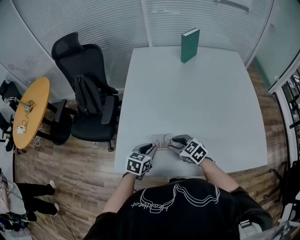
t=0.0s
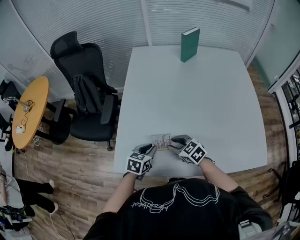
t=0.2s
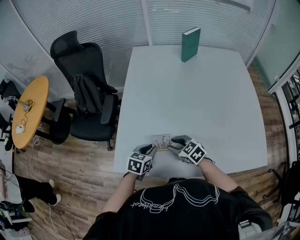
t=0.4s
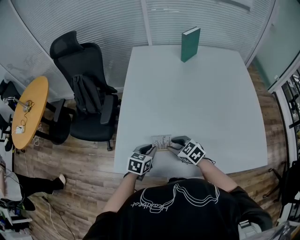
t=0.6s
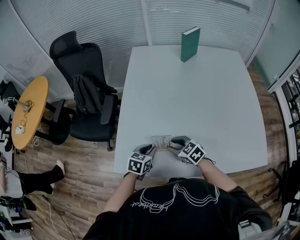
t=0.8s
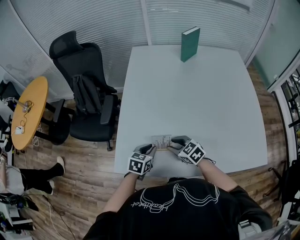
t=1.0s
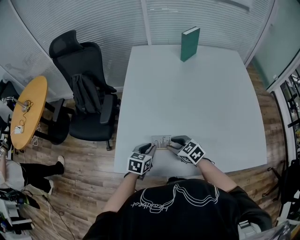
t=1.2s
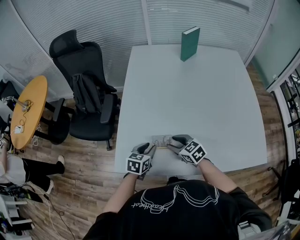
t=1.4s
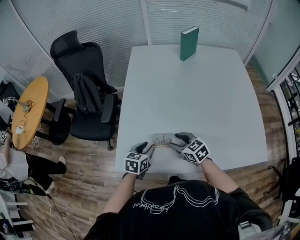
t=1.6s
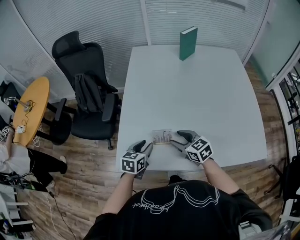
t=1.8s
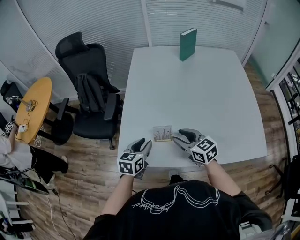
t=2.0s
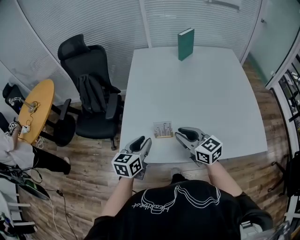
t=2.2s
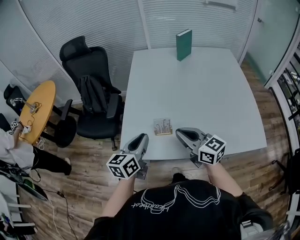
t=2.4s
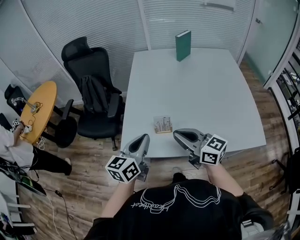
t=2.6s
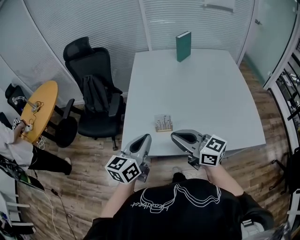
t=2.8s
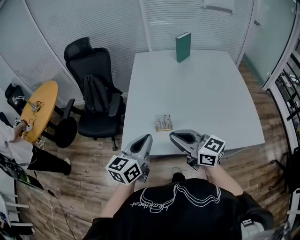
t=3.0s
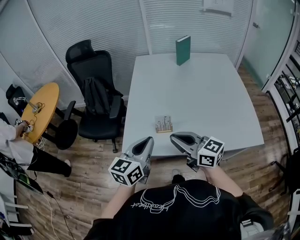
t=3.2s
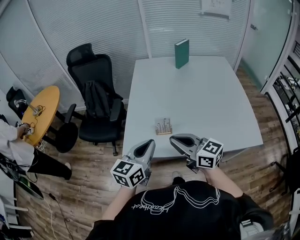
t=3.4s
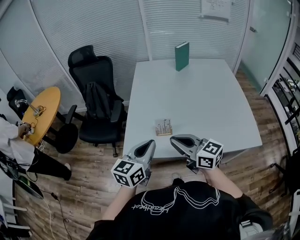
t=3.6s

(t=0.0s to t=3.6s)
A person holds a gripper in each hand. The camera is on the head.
t=0.0s - t=1.8s: The right gripper opens its fingers.
t=1.8s - t=3.6s: The two grippers go some 25 cm upward and backward. The left gripper turns by some 30 degrees, and closes its fingers. Meanwhile the right gripper swivels roughly 30 degrees, and closes its fingers.

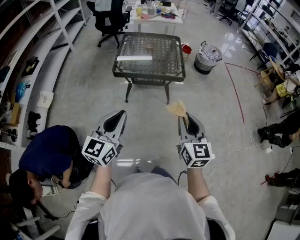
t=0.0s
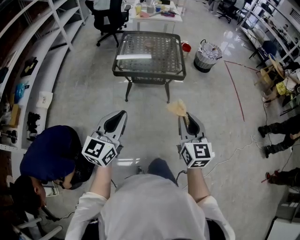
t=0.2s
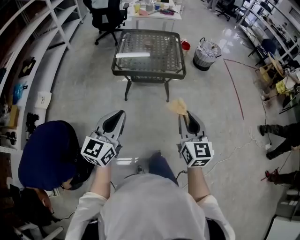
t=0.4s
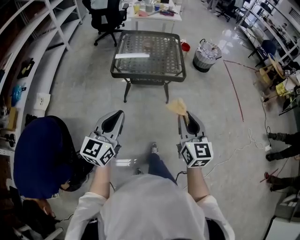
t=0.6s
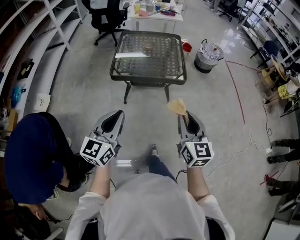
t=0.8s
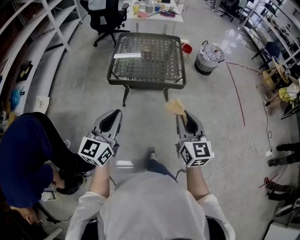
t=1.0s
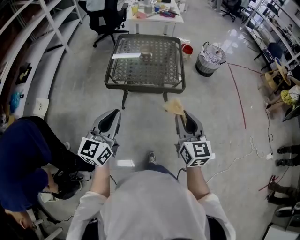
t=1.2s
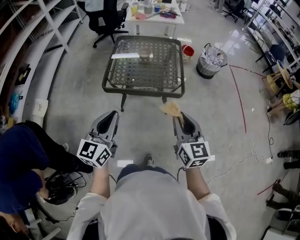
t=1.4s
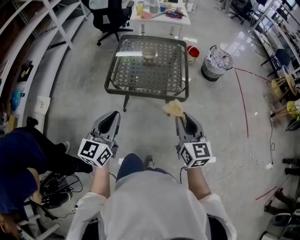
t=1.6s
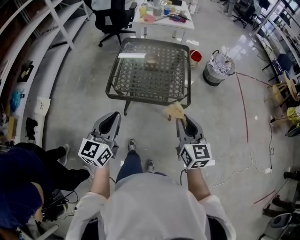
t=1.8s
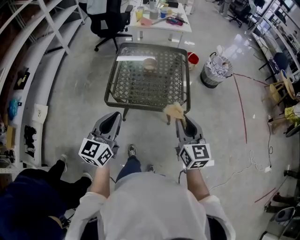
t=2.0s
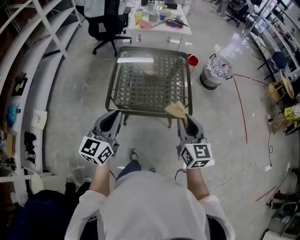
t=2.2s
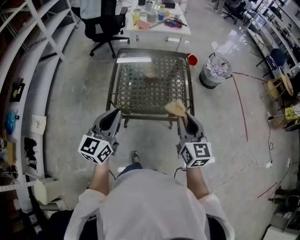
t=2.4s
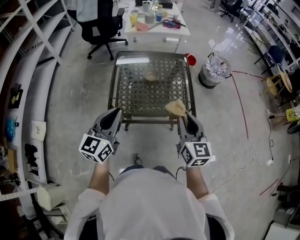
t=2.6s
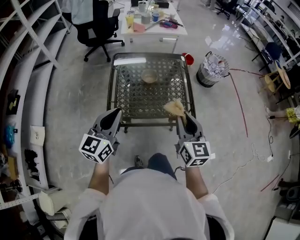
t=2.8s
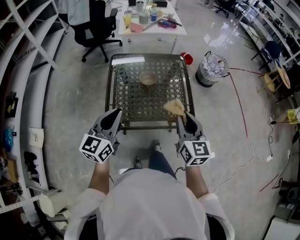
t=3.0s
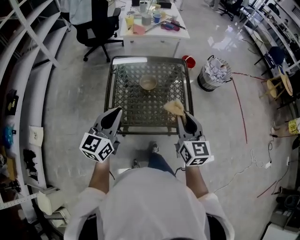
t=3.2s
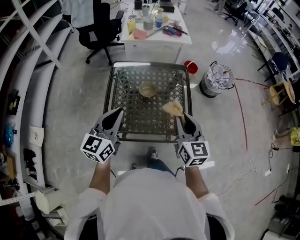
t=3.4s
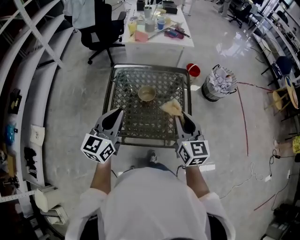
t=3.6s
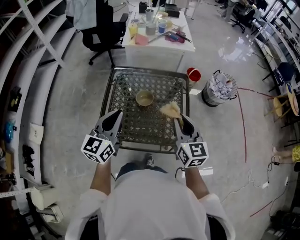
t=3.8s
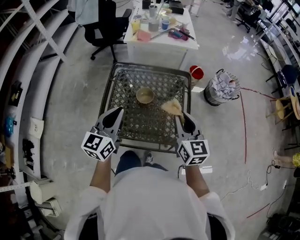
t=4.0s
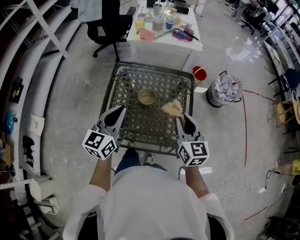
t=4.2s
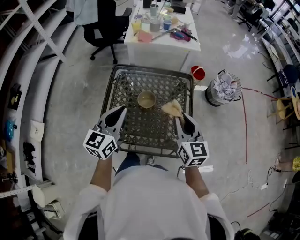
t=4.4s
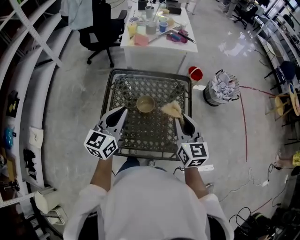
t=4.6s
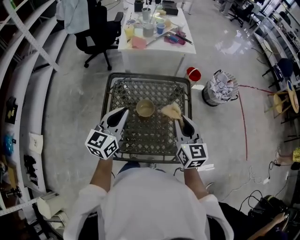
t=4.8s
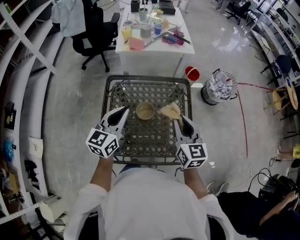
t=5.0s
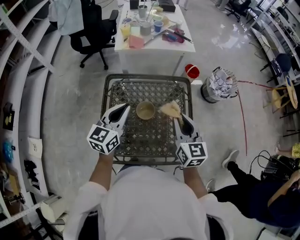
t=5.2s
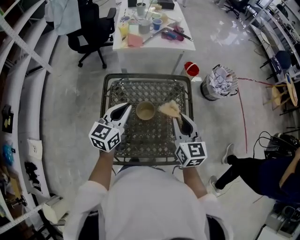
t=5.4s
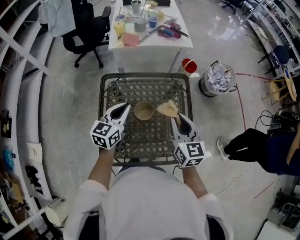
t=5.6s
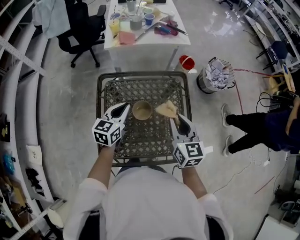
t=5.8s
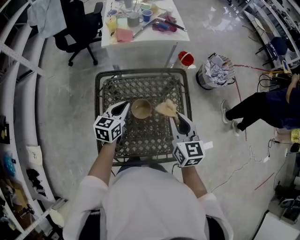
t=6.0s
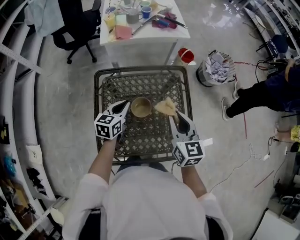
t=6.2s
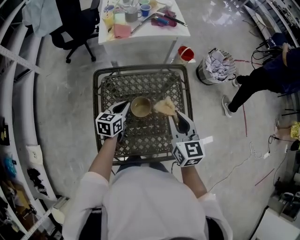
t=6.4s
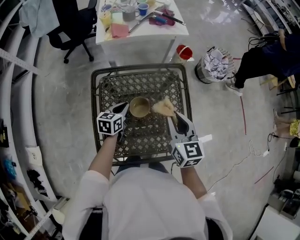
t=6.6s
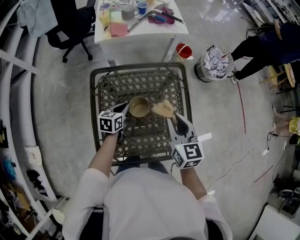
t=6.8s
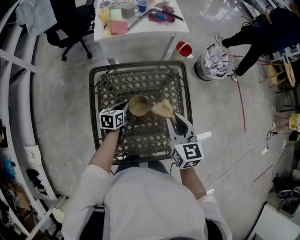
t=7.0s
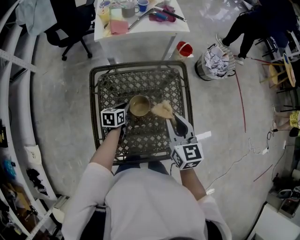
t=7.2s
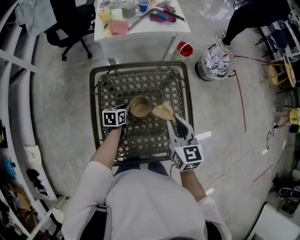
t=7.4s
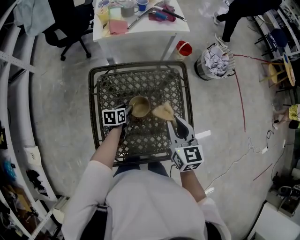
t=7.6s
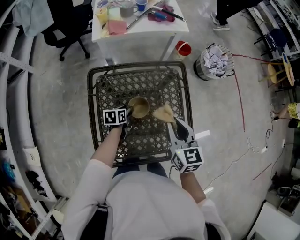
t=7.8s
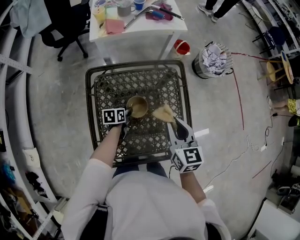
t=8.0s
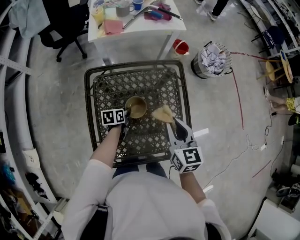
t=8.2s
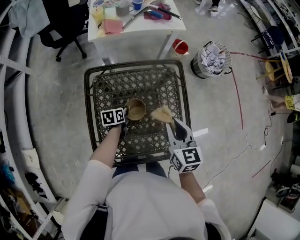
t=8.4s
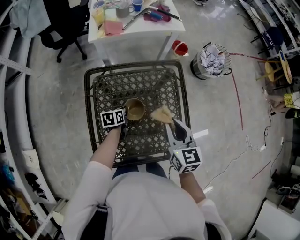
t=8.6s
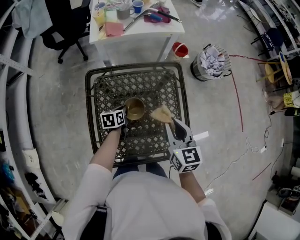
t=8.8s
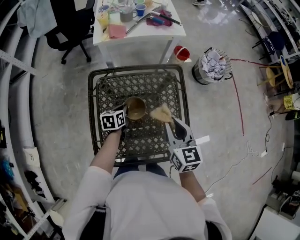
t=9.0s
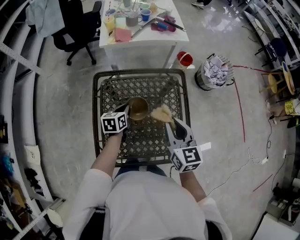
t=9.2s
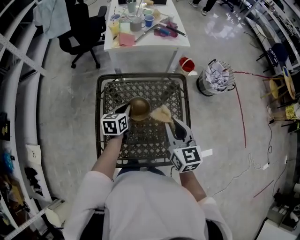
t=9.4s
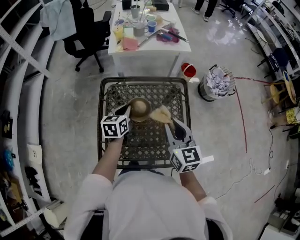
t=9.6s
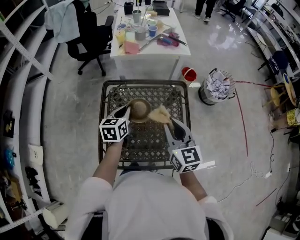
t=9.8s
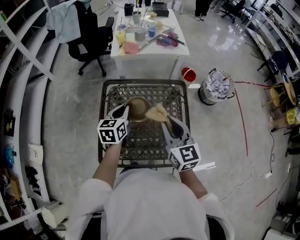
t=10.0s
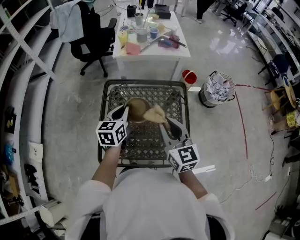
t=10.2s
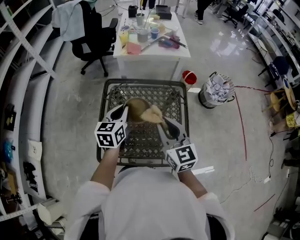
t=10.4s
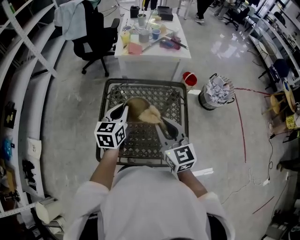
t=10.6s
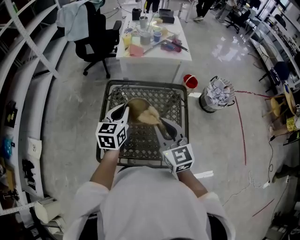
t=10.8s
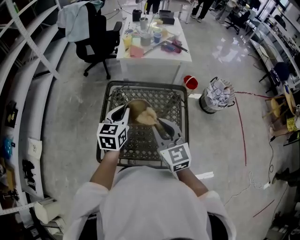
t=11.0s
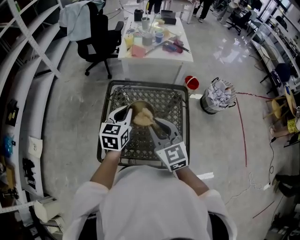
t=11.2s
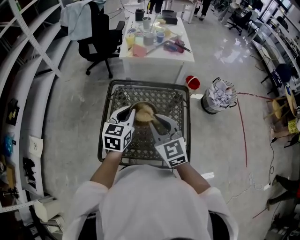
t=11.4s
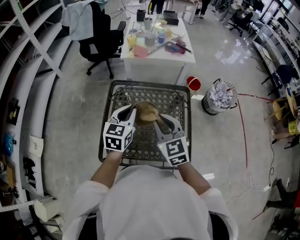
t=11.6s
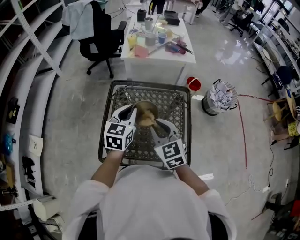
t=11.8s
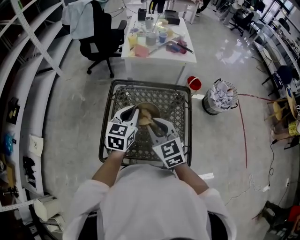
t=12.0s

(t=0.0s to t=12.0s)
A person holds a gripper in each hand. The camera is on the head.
t=0.0s - t=1.6s: Both grippers travel together forward, roughly 25 cm.
t=1.6s - t=3.0s: The left gripper moves forward, roughly 25 cm. The right gripper moves forward and to the left, about 25 cm.
t=3.0s - t=4.4s: The grippers both shift forward by approximately 20 cm.
t=4.4s - t=6.0s: The right gripper moves forward, about 10 cm; the left gripper heads forward and downward, covering roughly 20 cm, and swivels roughly 20 degrees.
t=6.0s - t=7.6s: The left gripper goes some 20 cm downward, rotates roughly 30 degrees, and opens up.
t=7.6s - t=9.0s: The left gripper closes its fingers.
t=9.0s - t=10.4s: The left gripper travels upward by roughly 25 cm, and turns by approximately 30 degrees. The right gripper heads upward and backward, covering roughly 10 cm, and changes its angle by about 20 degrees.
t=10.4s - t=12.0s: The right gripper is displaced to the left by roughly 5 cm, and turns by about 20 degrees.

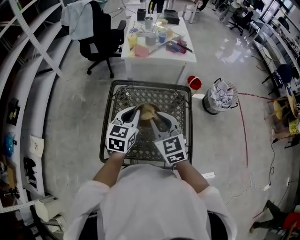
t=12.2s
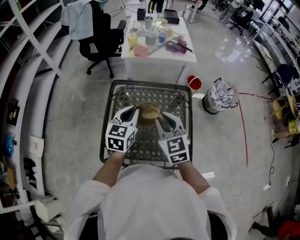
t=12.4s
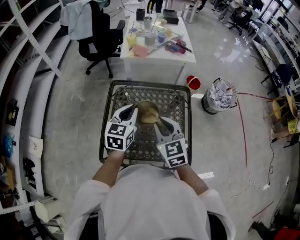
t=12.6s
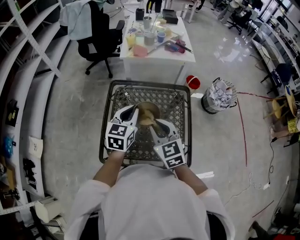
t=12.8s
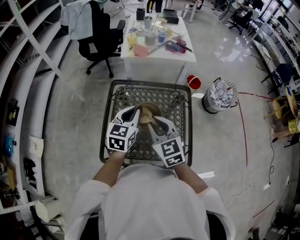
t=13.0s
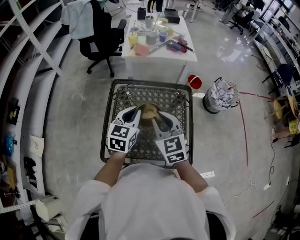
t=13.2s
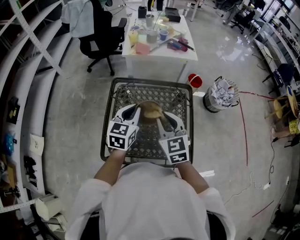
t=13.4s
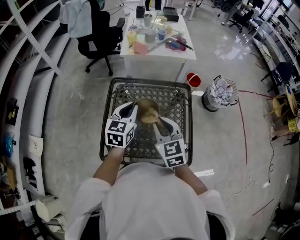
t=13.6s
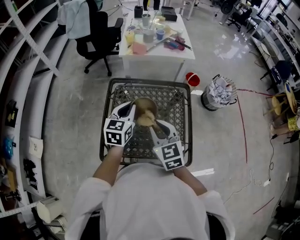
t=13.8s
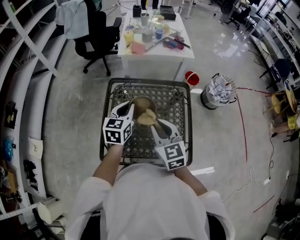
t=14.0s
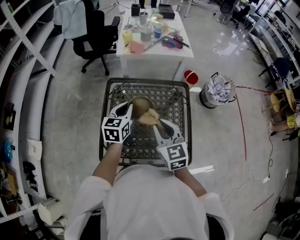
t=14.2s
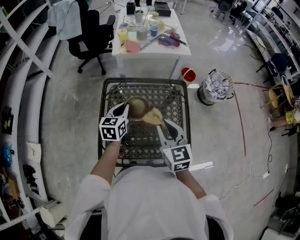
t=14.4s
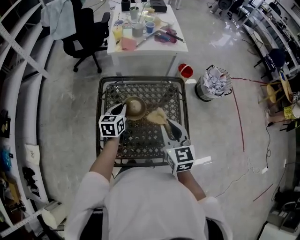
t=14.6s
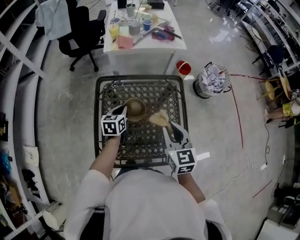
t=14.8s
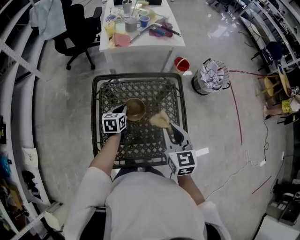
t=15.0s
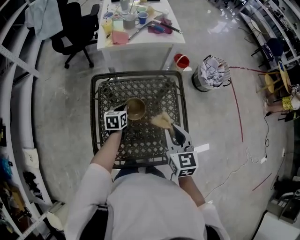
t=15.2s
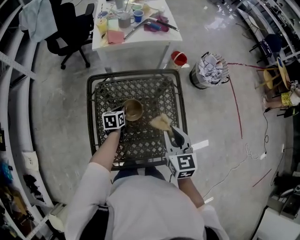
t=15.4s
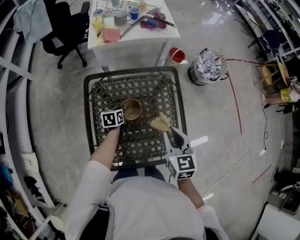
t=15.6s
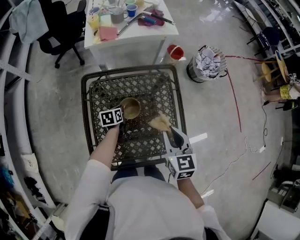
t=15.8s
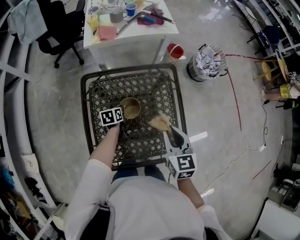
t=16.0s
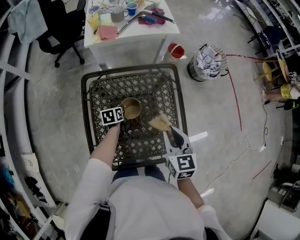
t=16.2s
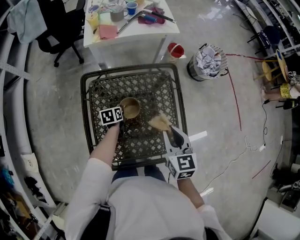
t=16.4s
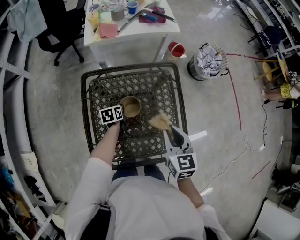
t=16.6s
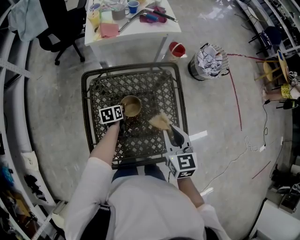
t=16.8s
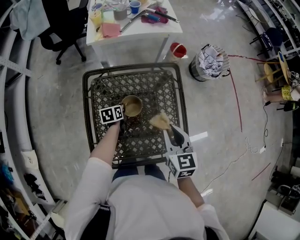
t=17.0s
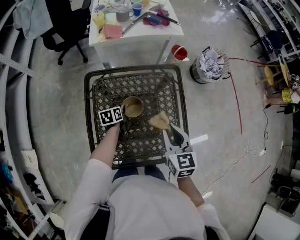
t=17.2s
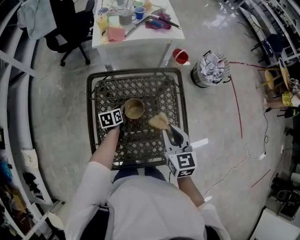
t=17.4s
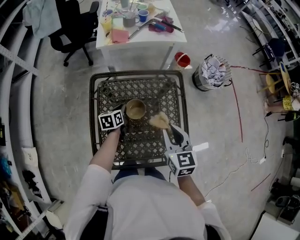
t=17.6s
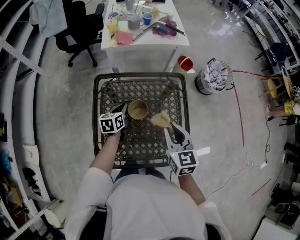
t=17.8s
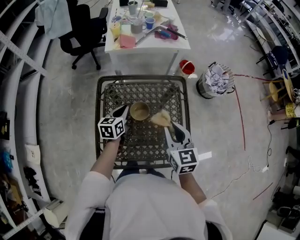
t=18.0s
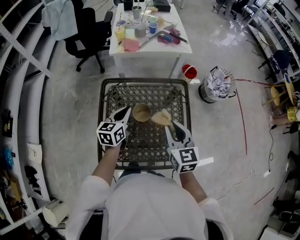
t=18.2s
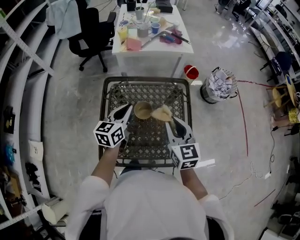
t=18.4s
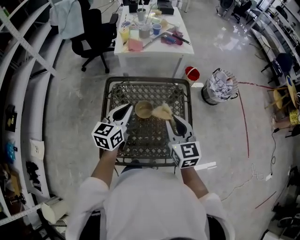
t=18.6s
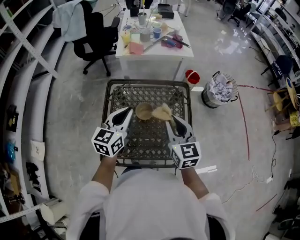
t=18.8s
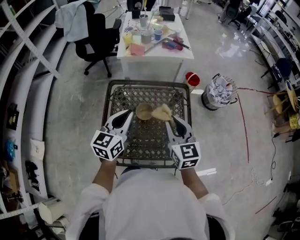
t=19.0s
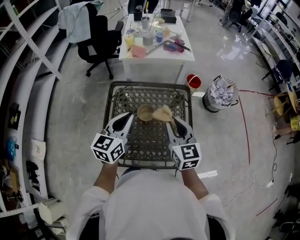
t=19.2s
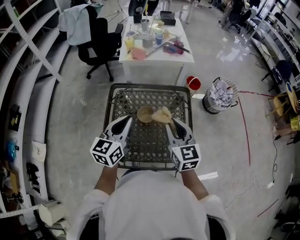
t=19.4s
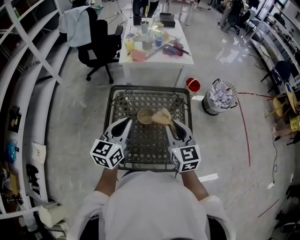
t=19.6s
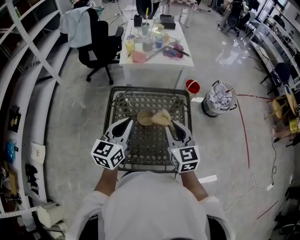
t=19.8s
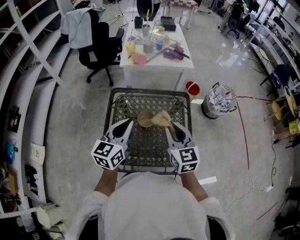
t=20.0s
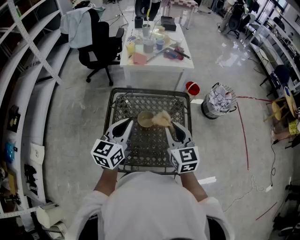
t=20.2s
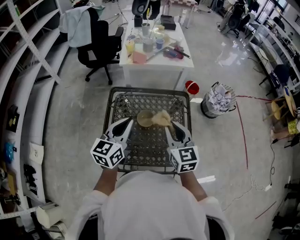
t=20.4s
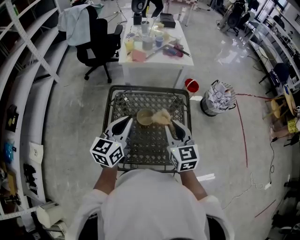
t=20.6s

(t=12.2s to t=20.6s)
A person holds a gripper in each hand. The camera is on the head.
t=12.2s - t=13.6s: The grippers stay close to where they were, moving slightly.
t=13.6s - t=15.0s: The right gripper travels to the right by about 5 cm, and turns by about 20 degrees; the left gripper moves downward, approximately 20 cm, and turns by some 30 degrees.
t=15.0s - t=16.4s: The left gripper goes some 10 cm downward, and rotates about 20 degrees.
t=16.4s - t=17.8s: The left gripper heads upward, covering about 10 cm.
t=17.8s - t=19.2s: The right gripper heads upward, covering roughly 5 cm; the left gripper heads upward and backward, covering approximately 25 cm, and turns by approximately 30 degrees.
t=19.2s - t=20.6s: The grippers make only small movements.
